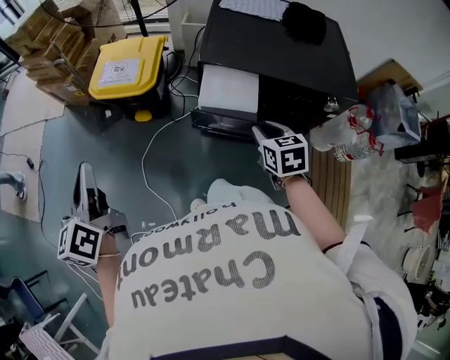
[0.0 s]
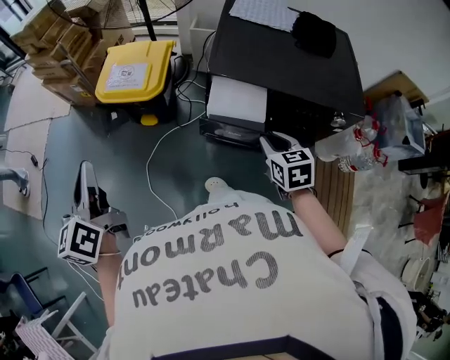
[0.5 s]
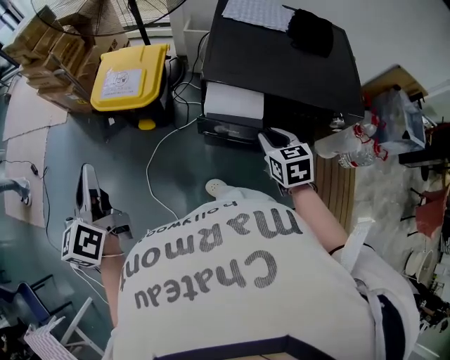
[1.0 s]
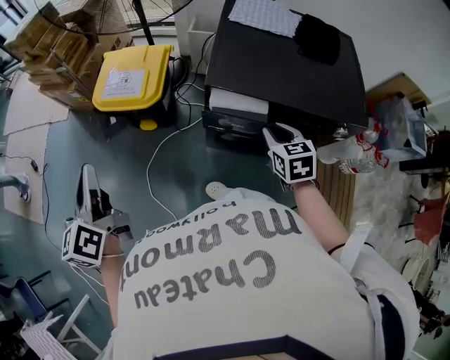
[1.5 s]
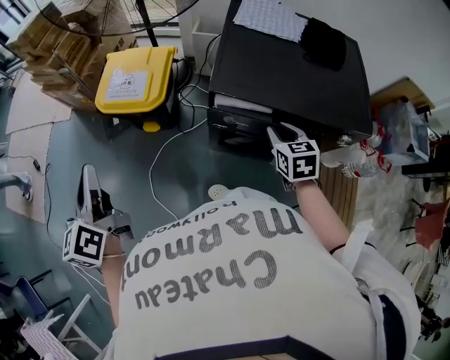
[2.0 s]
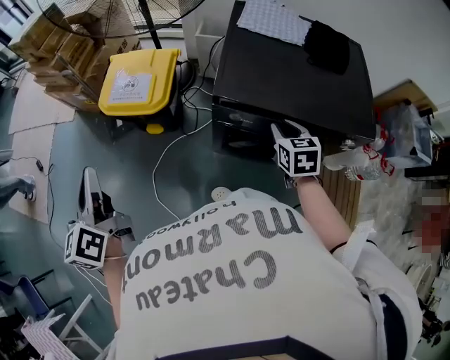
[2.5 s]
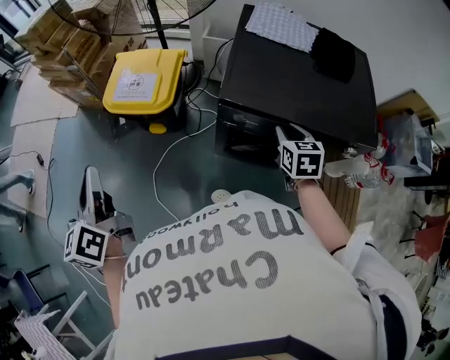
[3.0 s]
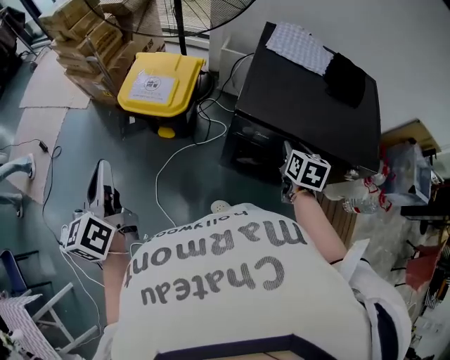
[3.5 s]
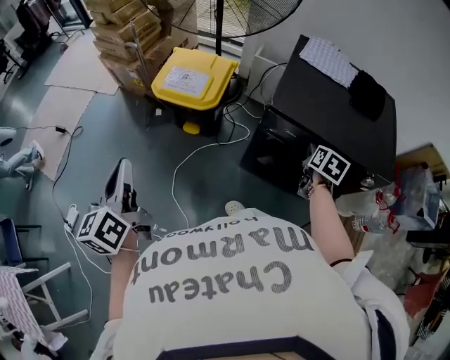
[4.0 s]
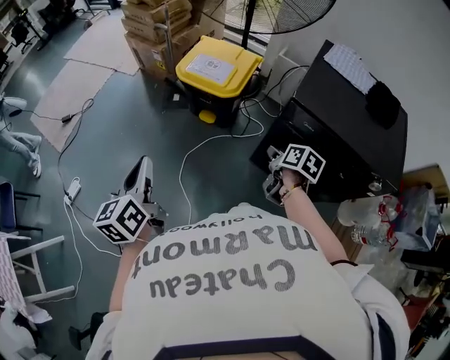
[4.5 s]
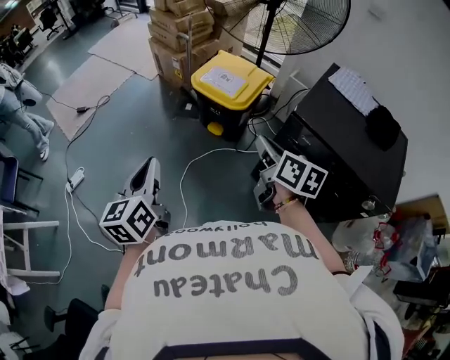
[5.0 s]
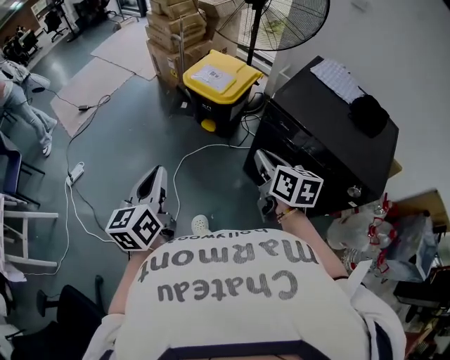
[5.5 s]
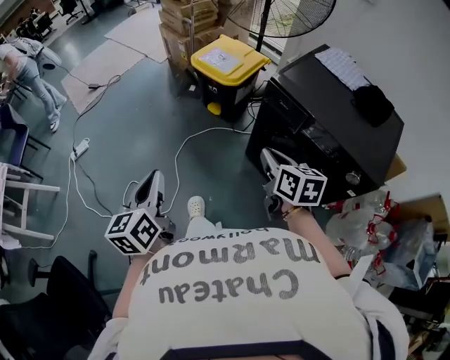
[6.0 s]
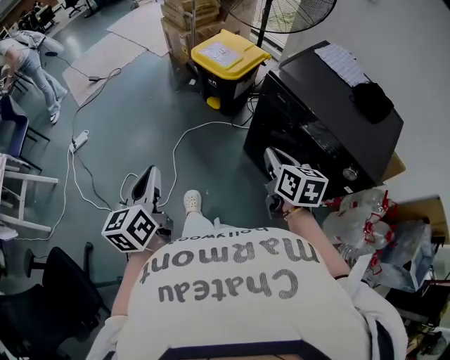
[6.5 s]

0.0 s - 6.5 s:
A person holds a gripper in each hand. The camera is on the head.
0.0 s - 2.0 s: The two grippers go approximately 10 cm forward.
2.0 s - 4.5 s: The right gripper goes about 20 cm to the left, and changes its angle by roughly 40 degrees, while the left gripper shifts about 20 cm backward and to the left.
4.5 s - 6.5 s: The left gripper heads backward and to the right, covering roughly 30 cm. Meanwhile the right gripper shifts roughly 20 cm backward and upward, and turns by approximately 40 degrees.

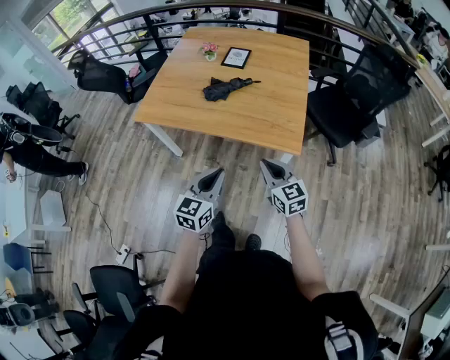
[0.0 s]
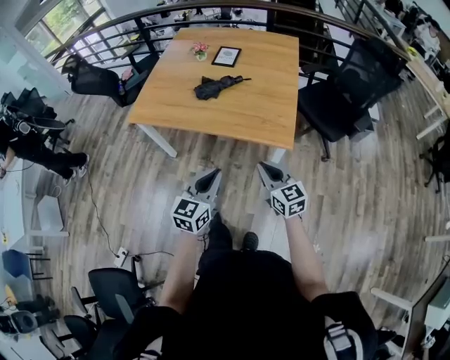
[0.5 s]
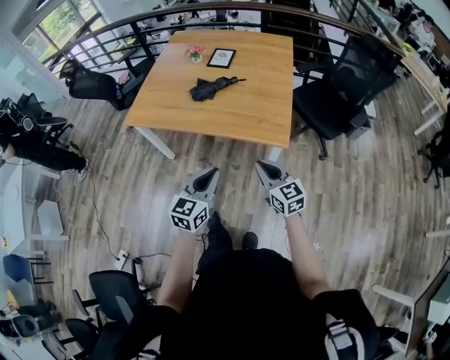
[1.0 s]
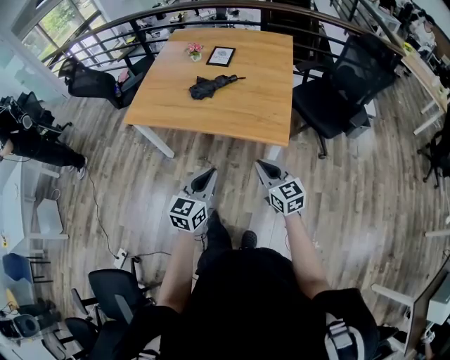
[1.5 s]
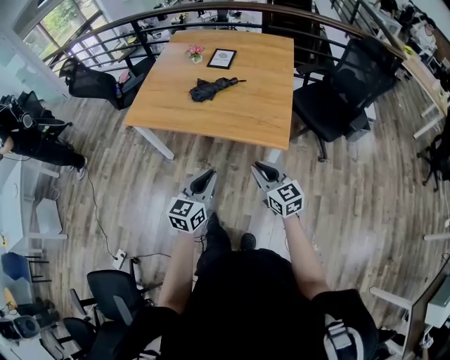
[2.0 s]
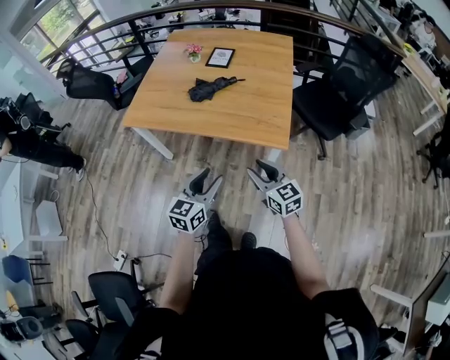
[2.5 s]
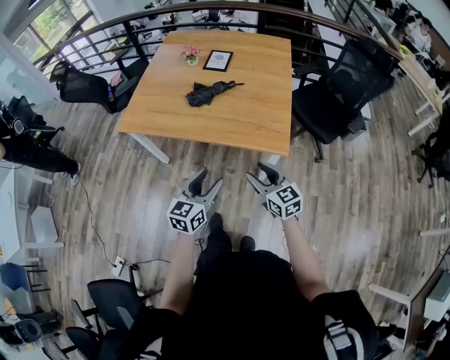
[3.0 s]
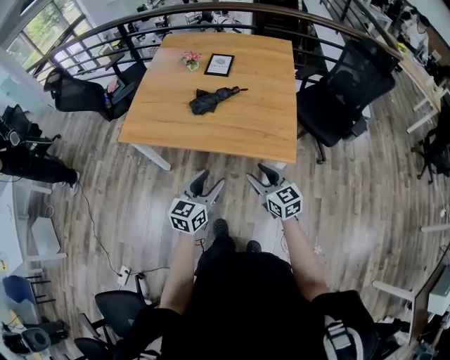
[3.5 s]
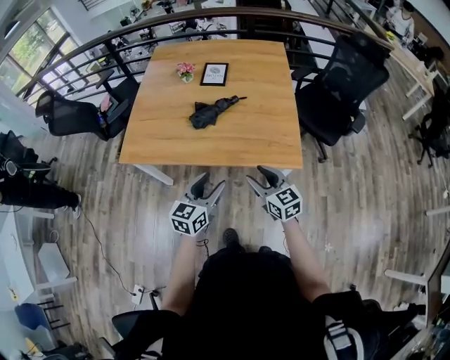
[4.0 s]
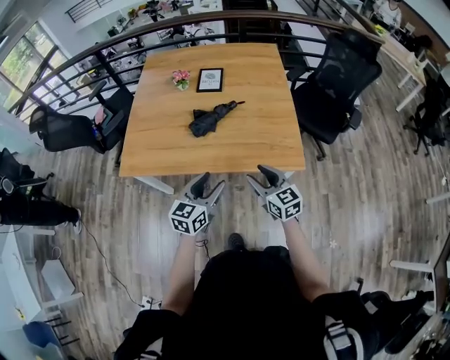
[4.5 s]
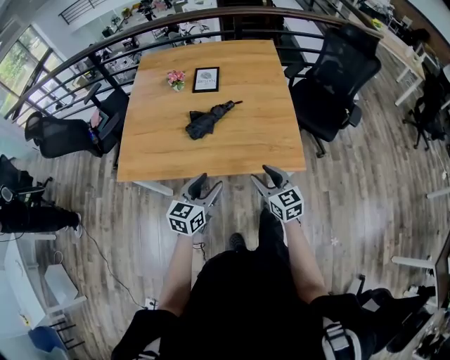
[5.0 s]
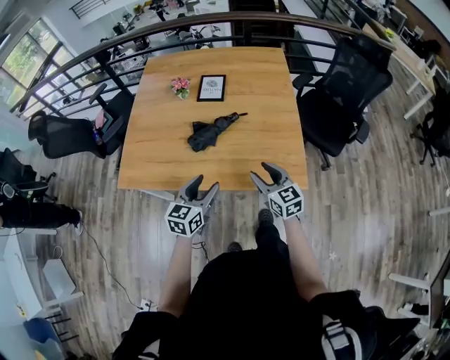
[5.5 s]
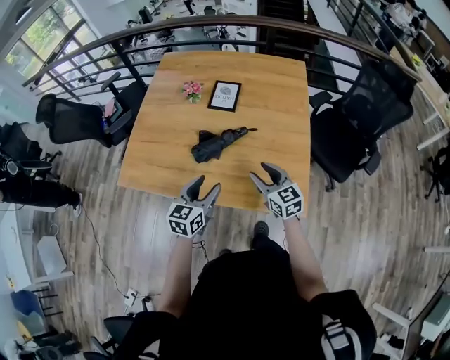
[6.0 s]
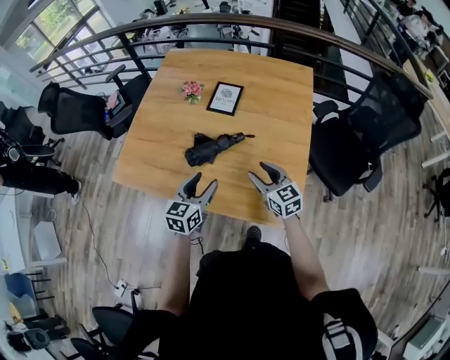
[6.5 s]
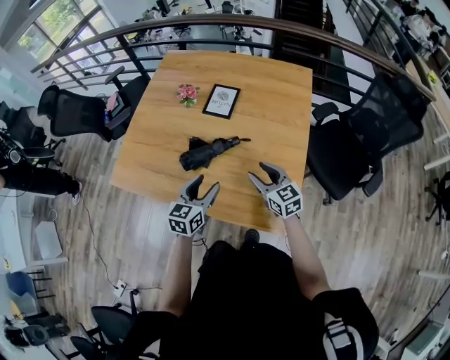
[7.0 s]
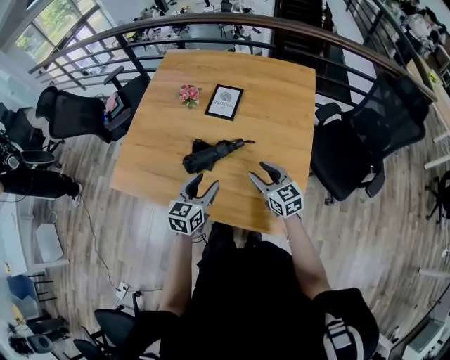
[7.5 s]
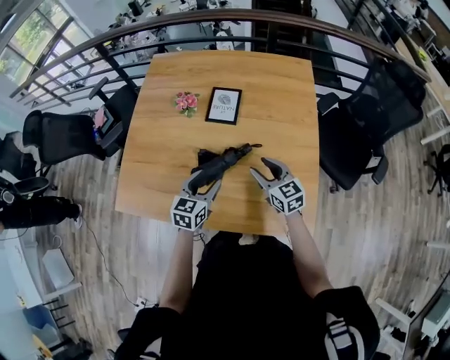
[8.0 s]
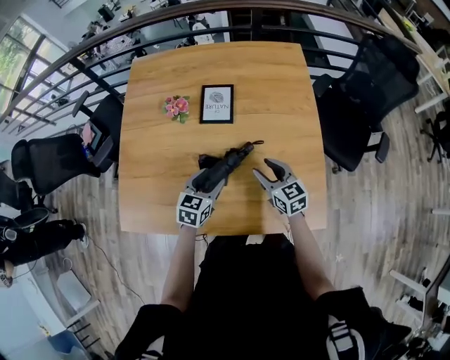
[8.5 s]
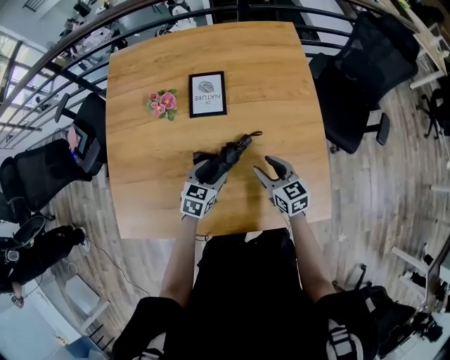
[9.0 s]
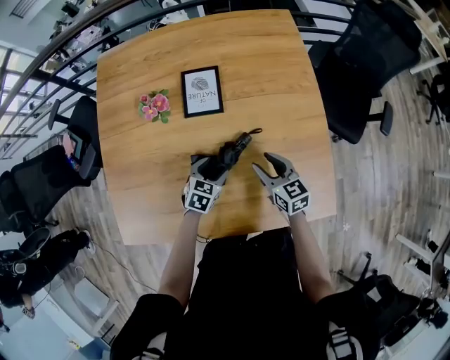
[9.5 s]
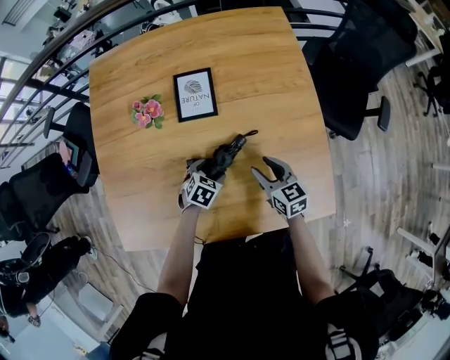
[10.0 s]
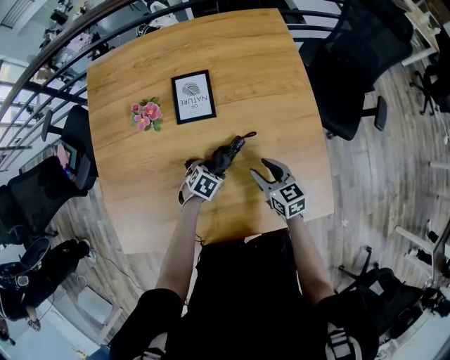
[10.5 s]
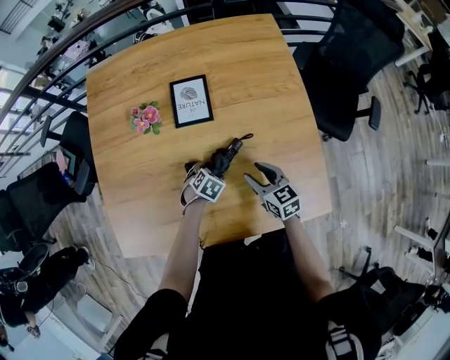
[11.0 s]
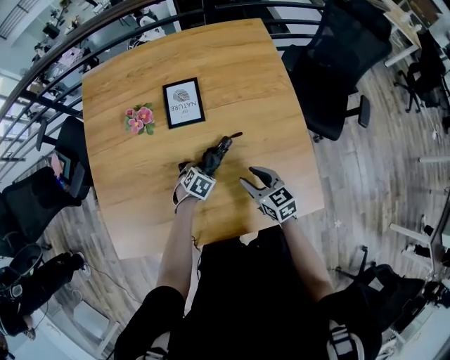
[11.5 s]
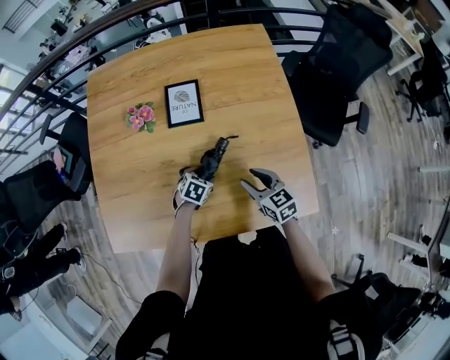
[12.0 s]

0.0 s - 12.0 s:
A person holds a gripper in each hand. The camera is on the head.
0.0 s - 2.0 s: There are only small adjustments of the grippers.
2.0 s - 4.0 s: Both grippers move forward and to the left, approximately 15 cm. The left gripper opens. Meanwhile the right gripper opens up.
4.0 s - 6.0 s: Both grippers move forward, some 20 cm.
6.0 s - 8.0 s: The two grippers go approximately 15 cm forward.
8.0 s - 10.0 s: The left gripper heads downward and forward, covering about 25 cm, and tilts its fingers some 40 degrees downward. The right gripper goes approximately 10 cm downward, and turns by about 20 degrees.
10.0 s - 12.0 s: The right gripper ends up about 5 cm from where it was.

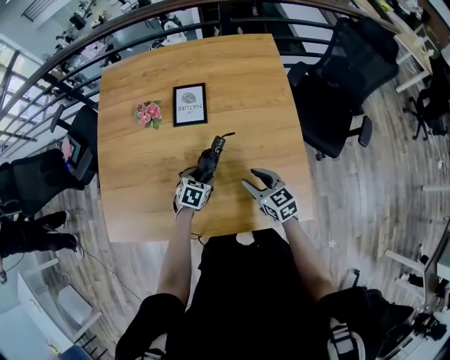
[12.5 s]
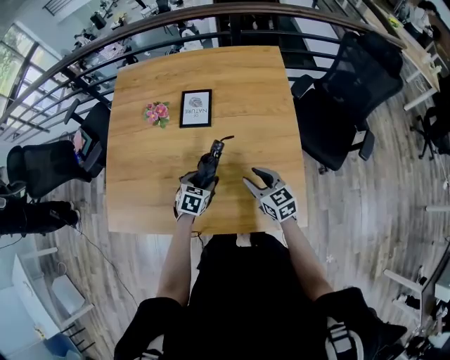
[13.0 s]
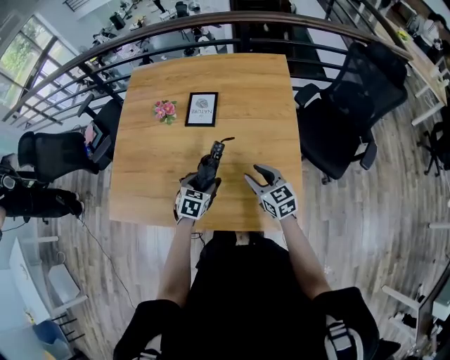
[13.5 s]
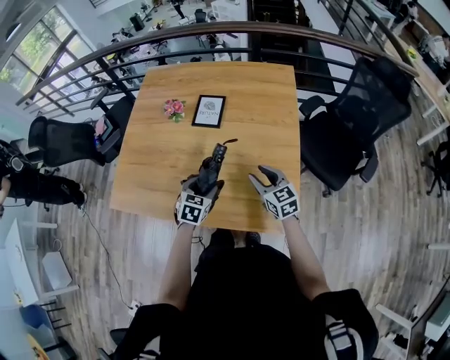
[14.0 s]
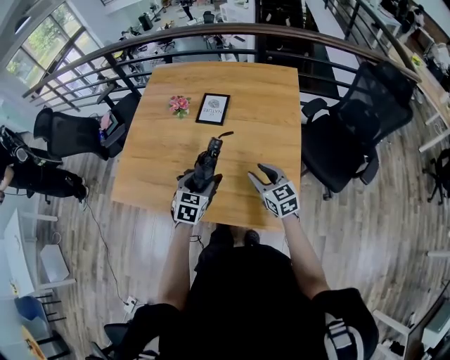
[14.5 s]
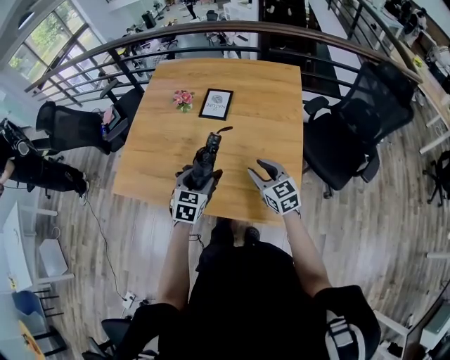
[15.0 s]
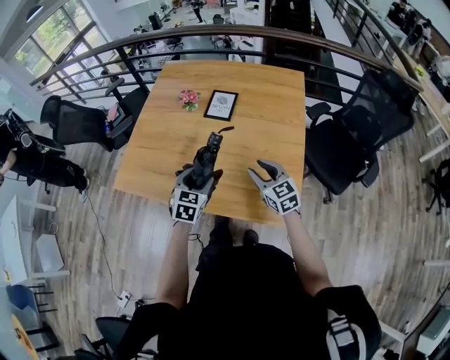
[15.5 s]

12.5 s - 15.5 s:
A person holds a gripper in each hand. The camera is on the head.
12.5 s - 14.0 s: The right gripper goes about 10 cm upward and to the right; the left gripper moves upward and backward, approximately 15 cm, and swivels some 20 degrees.
14.0 s - 15.5 s: The left gripper is displaced upward by about 5 cm. The right gripper shifts by roughly 5 cm.

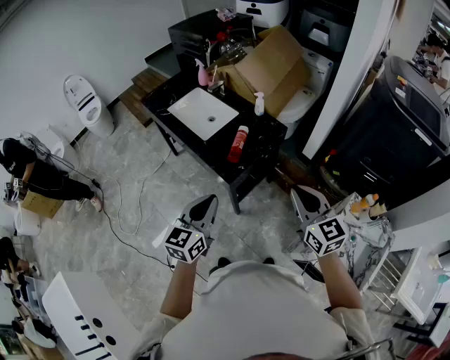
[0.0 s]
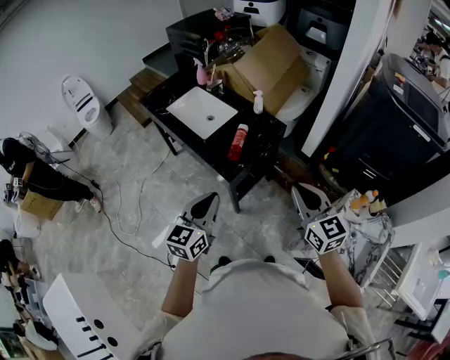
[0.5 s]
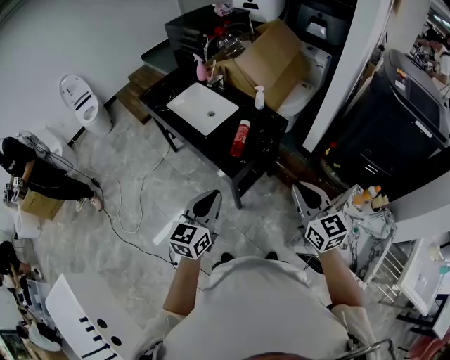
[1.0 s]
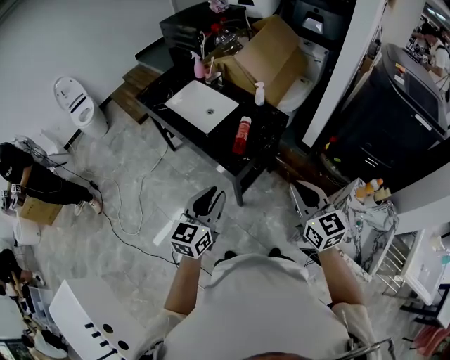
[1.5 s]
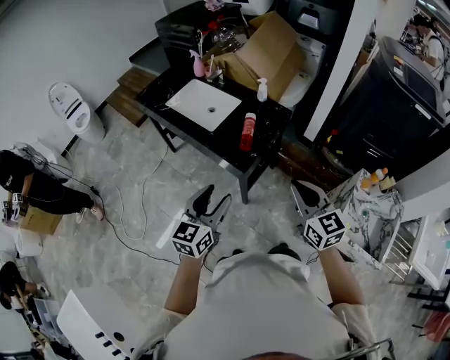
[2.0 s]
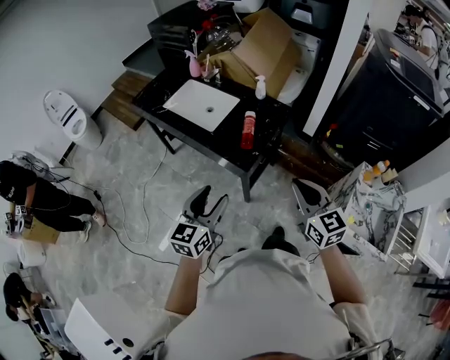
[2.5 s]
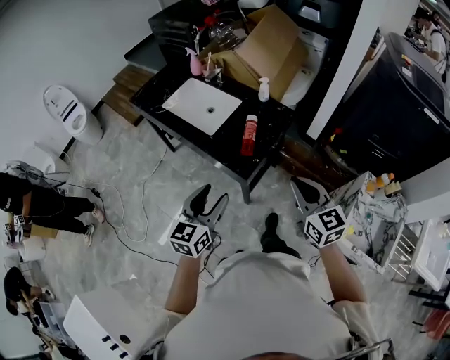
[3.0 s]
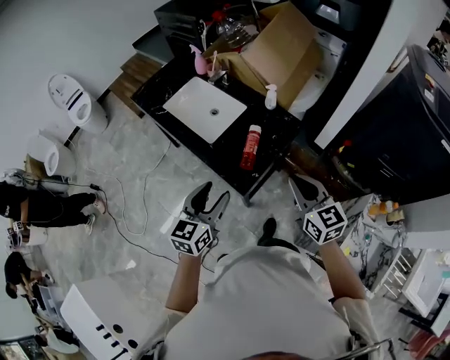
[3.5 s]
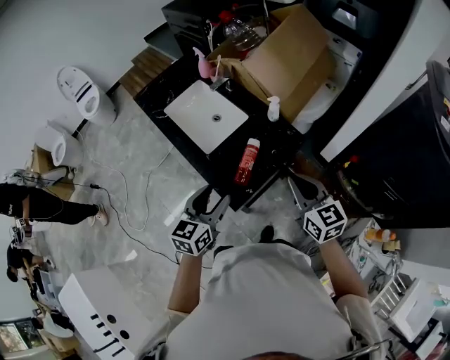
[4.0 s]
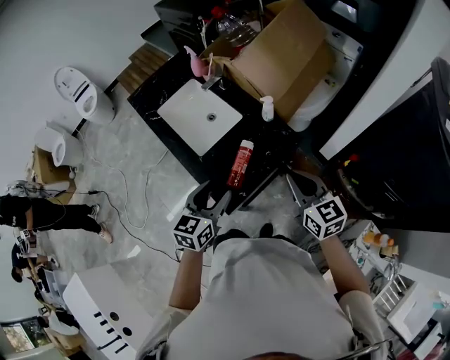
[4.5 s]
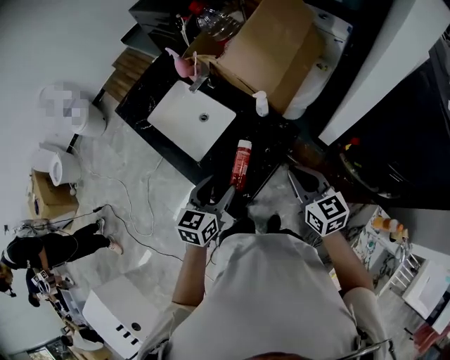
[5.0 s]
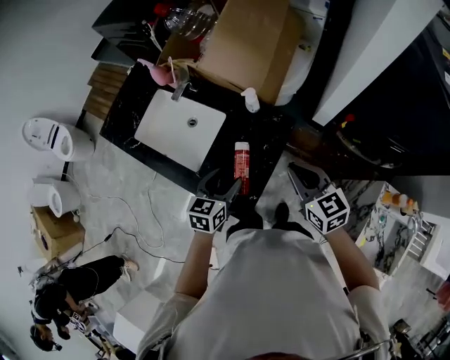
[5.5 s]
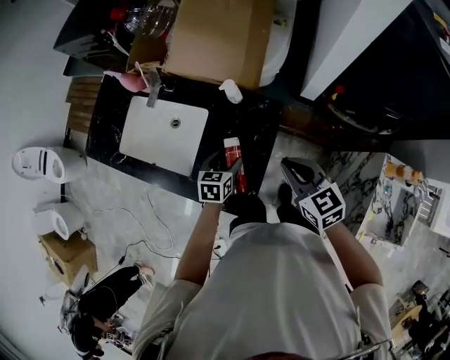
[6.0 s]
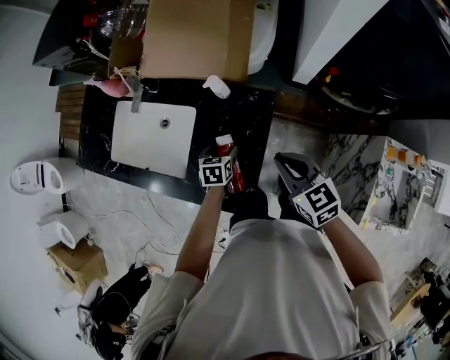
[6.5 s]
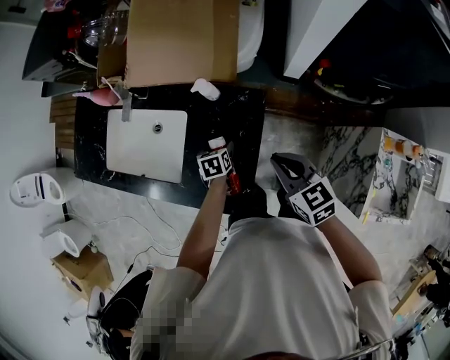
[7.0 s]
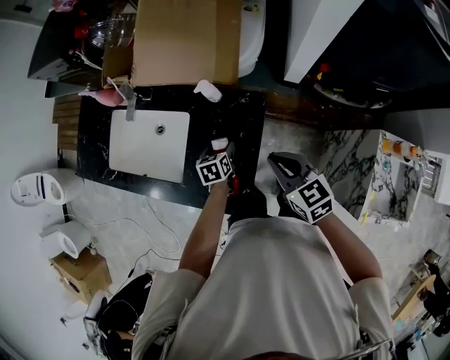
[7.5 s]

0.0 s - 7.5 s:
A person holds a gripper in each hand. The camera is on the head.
0.0 s - 2.0 s: Both grippers travel together to the left, approximately 10 cm. The left gripper opens.
2.0 s - 4.0 s: The two grippers go some 25 cm forward.
4.0 s - 5.5 s: The right gripper heads forward and downward, covering roughly 10 cm, while the left gripper is displaced forward and downward by roughly 20 cm, and rotates about 20 degrees.
5.5 s - 7.5 s: The right gripper is displaced downward by roughly 5 cm. Meanwhile the left gripper goes approximately 25 cm downward and forward, and changes its angle by some 20 degrees.
